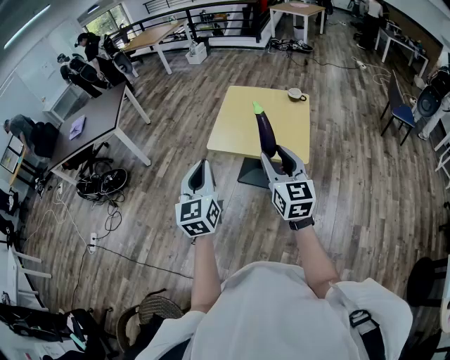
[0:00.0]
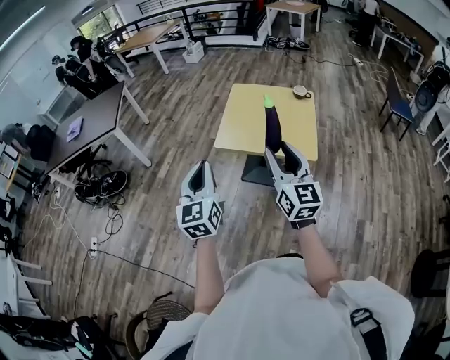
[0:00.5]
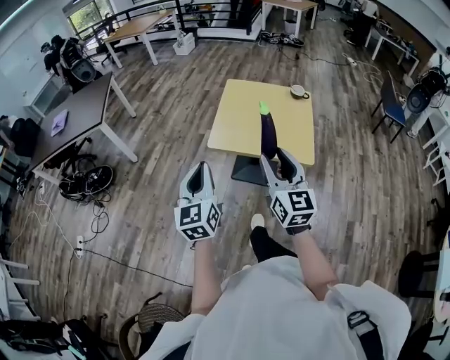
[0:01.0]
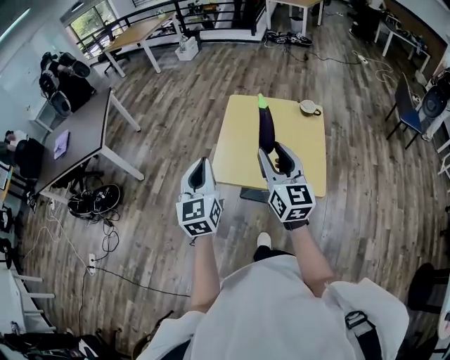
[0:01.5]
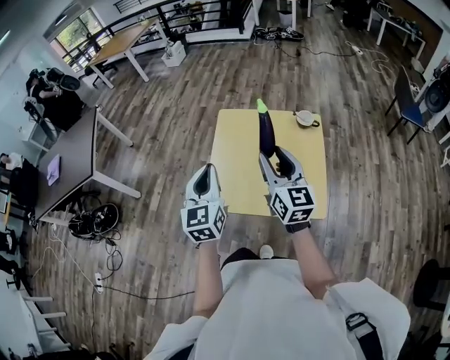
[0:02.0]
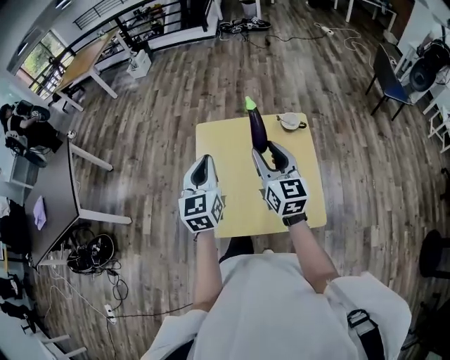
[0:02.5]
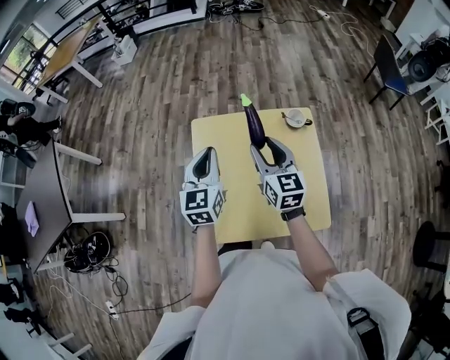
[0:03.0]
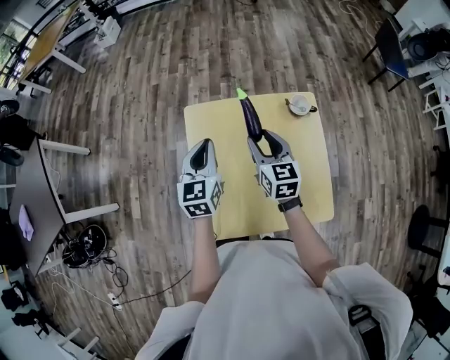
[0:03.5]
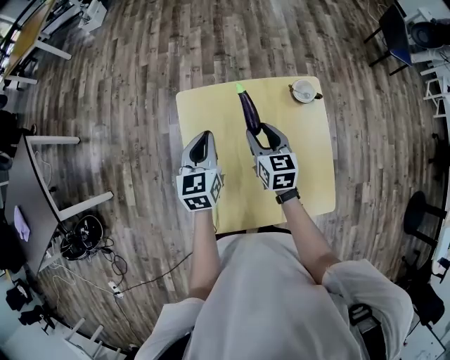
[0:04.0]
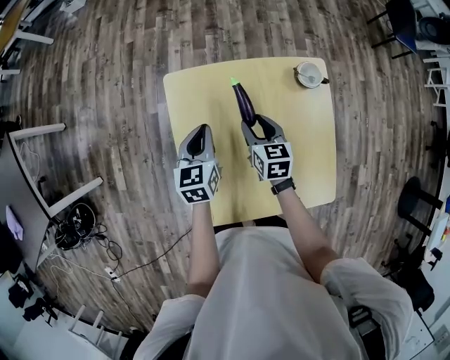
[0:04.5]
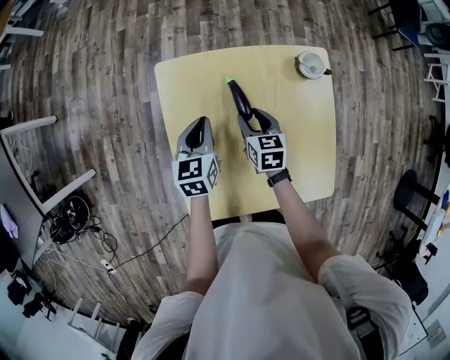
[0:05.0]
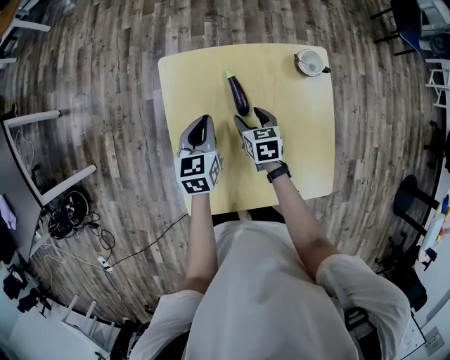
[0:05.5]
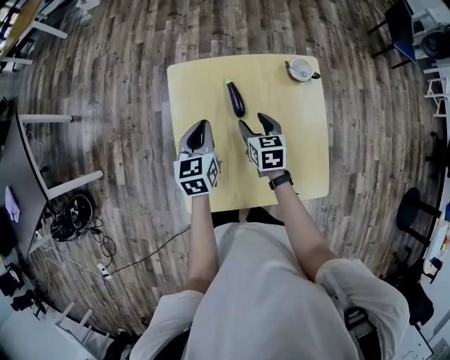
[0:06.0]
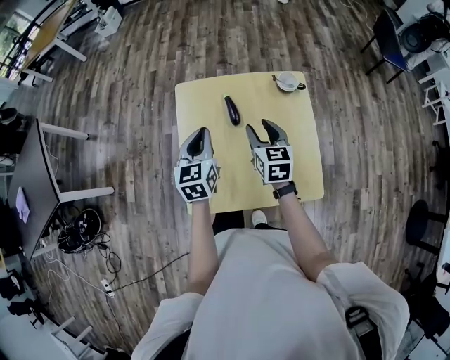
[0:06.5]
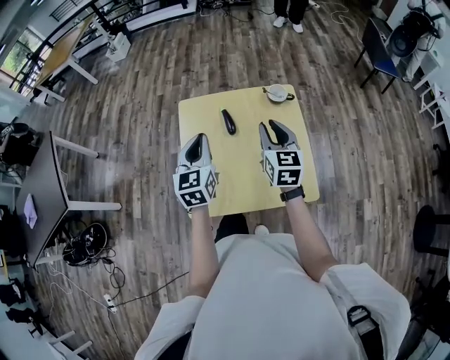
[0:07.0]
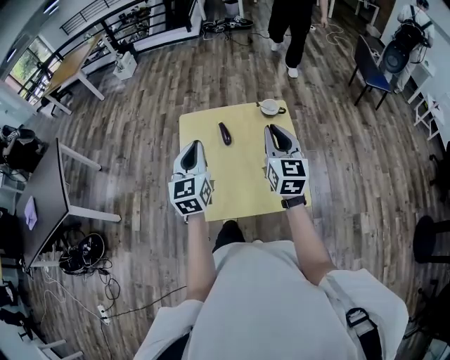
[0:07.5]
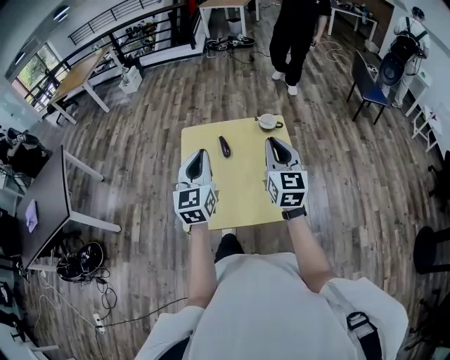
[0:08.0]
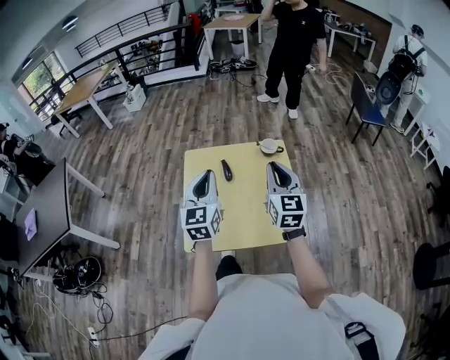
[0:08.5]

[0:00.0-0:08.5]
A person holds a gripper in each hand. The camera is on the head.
0:00.0 to 0:02.0: Both grippers travel together forward, roughly 40 cm.
0:02.0 to 0:04.0: Both grippers move forward and downward, roughly 35 cm. The left gripper changes its angle by about 30 degrees, while the right gripper points its fingers some 30 degrees further downward.
0:04.0 to 0:06.5: The two grippers go approximately 10 cm backward. The right gripper moves roughly 15 cm downward and comes back; the left gripper goes downward and returns, some 10 cm each way.
0:06.5 to 0:08.5: The right gripper travels upward, backward and to the right by approximately 25 cm, rotates roughly 30 degrees, and closes up; the left gripper travels upward and backward by roughly 20 cm, and rotates some 20 degrees.

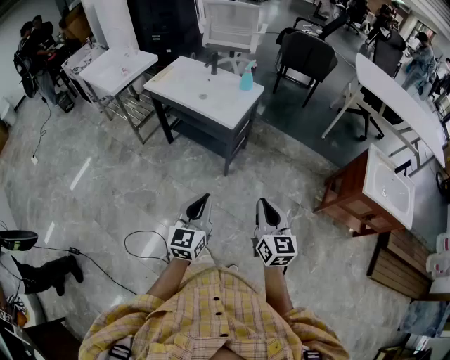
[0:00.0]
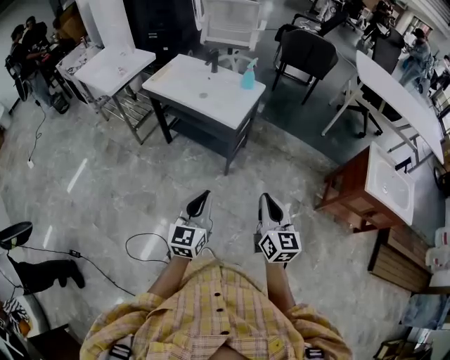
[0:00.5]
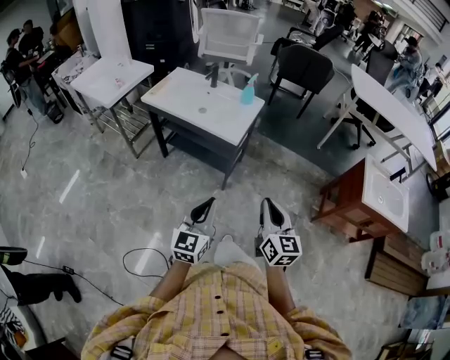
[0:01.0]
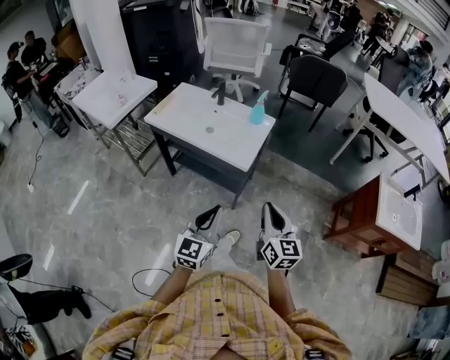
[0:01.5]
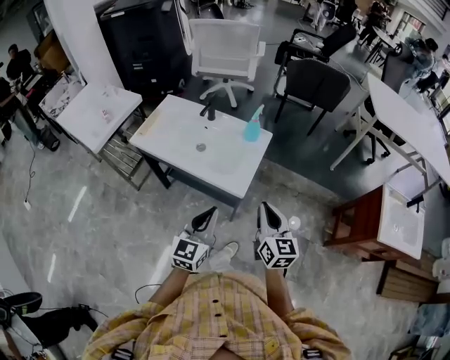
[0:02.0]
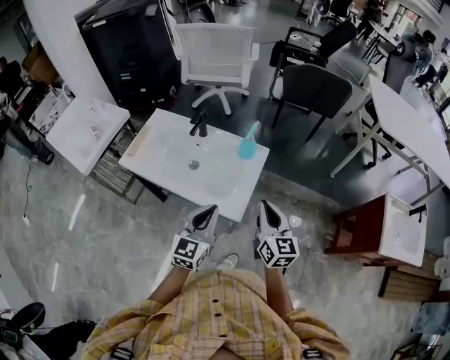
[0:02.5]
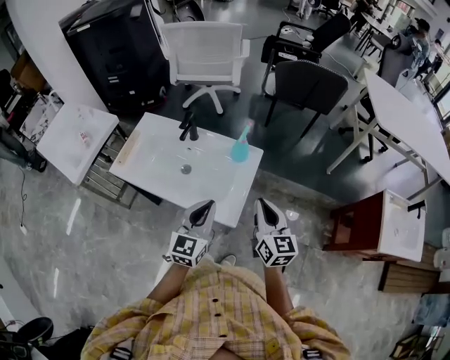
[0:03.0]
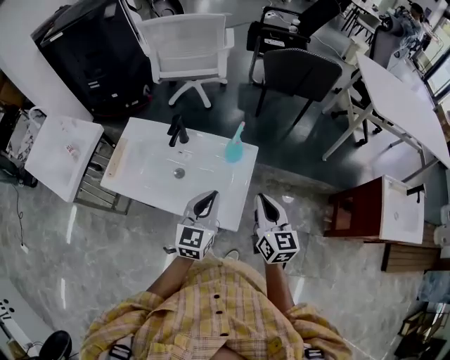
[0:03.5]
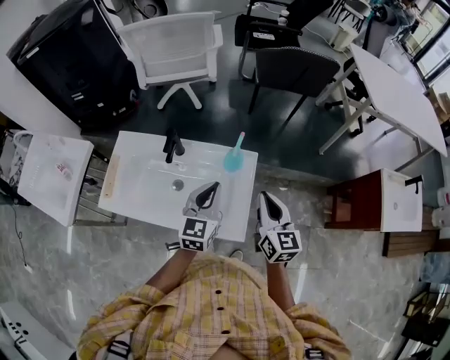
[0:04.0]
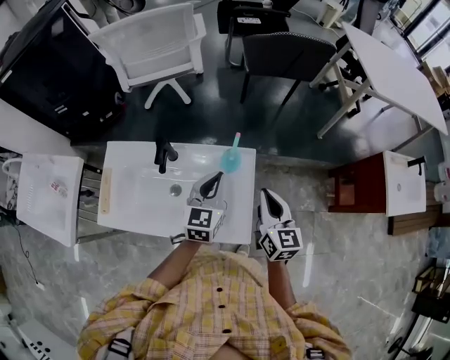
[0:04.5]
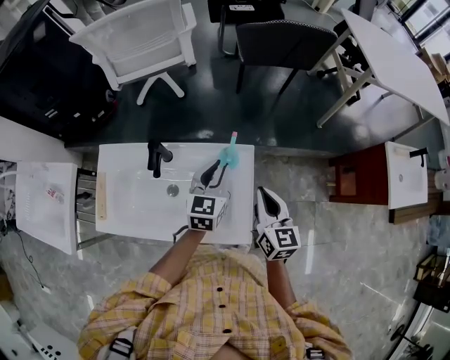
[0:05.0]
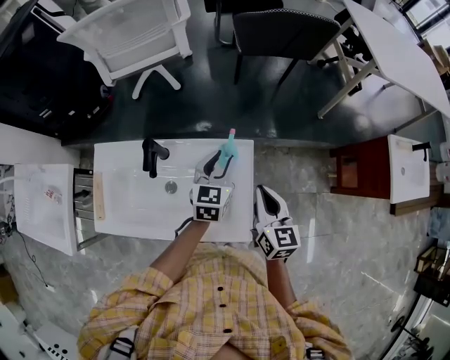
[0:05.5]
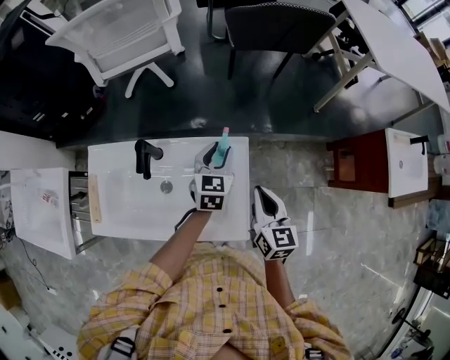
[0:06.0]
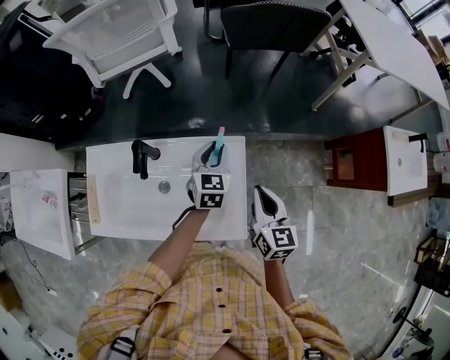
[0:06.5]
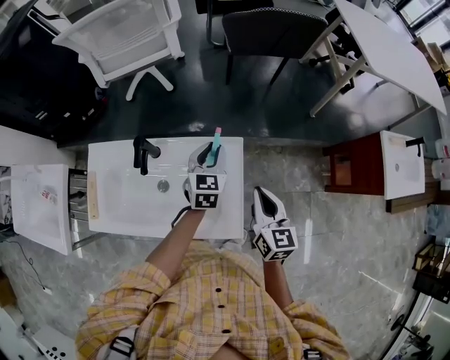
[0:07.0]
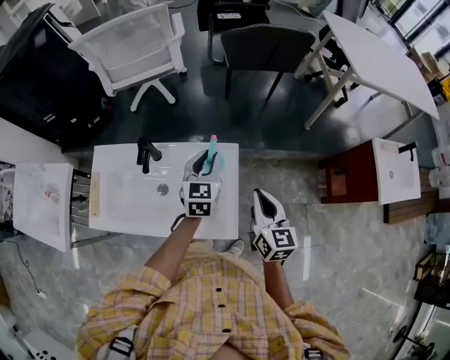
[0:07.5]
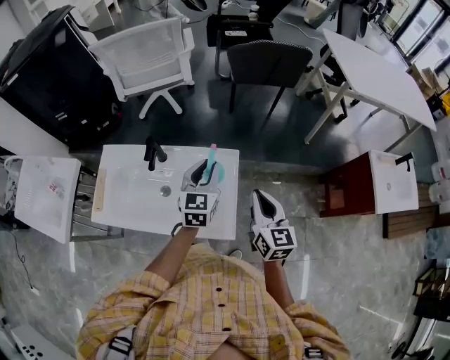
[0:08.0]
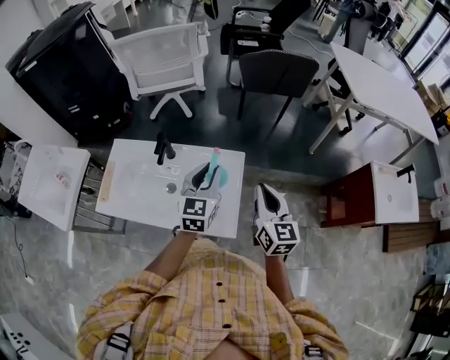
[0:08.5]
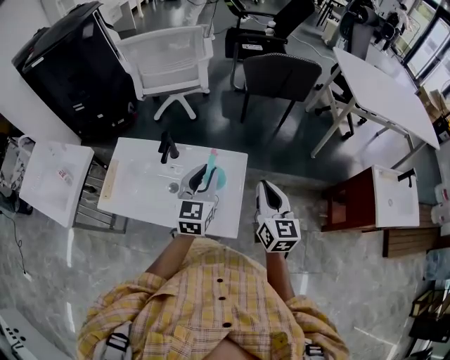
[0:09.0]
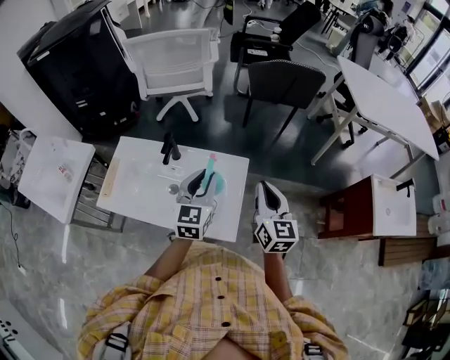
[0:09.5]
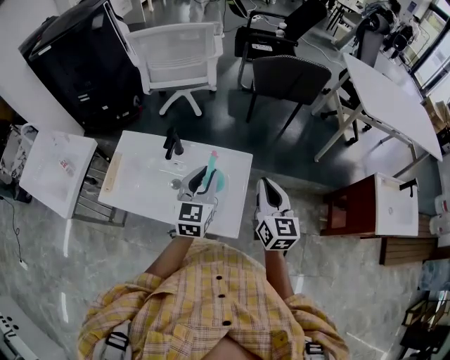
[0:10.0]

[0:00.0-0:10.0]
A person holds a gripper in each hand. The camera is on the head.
0:00.0 to 0:02.0: Both grippers move forward, roughly 35 cm.
0:02.0 to 0:04.0: Both grippers move forward, roughly 30 cm.
0:04.0 to 0:06.0: The right gripper travels downward by approximately 10 cm; the left gripper travels forward and downward by some 20 cm, and opens its fingers.
0:06.0 to 0:08.0: Both grippers move upward and backward, some 10 cm.
0:08.0 to 0:10.0: The right gripper shifts by roughly 5 cm. Meanwhile the left gripper heads backward, covering some 5 cm.

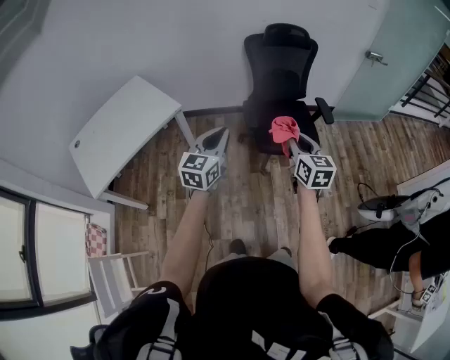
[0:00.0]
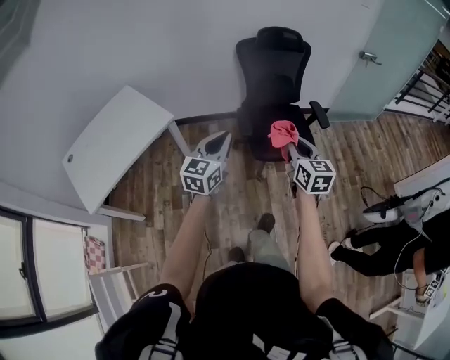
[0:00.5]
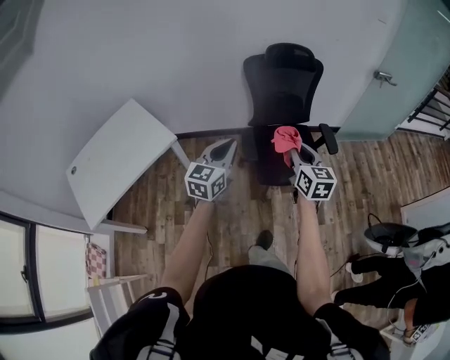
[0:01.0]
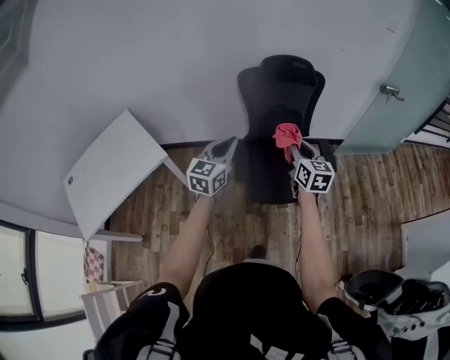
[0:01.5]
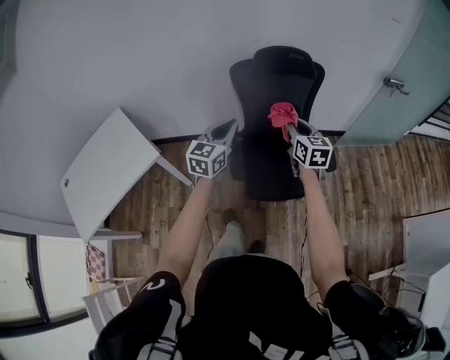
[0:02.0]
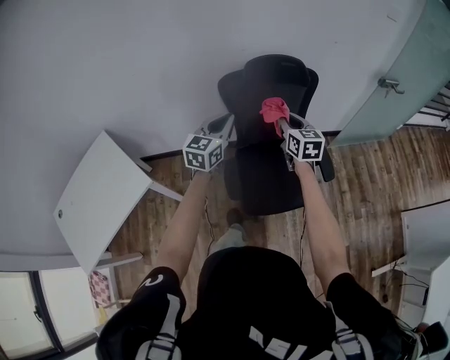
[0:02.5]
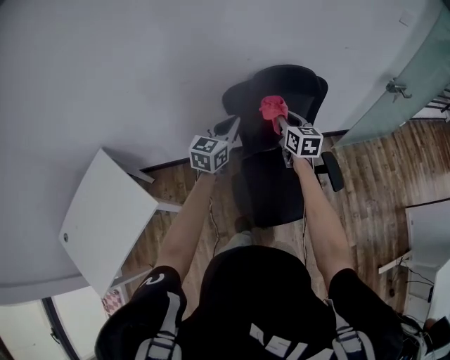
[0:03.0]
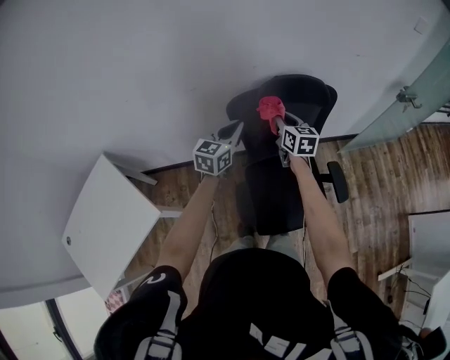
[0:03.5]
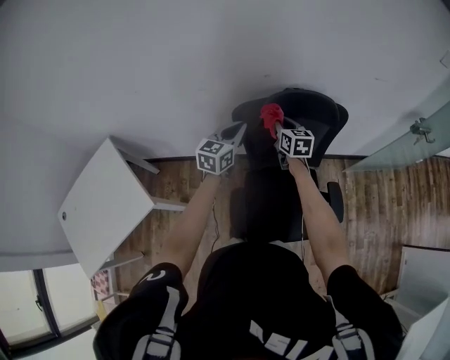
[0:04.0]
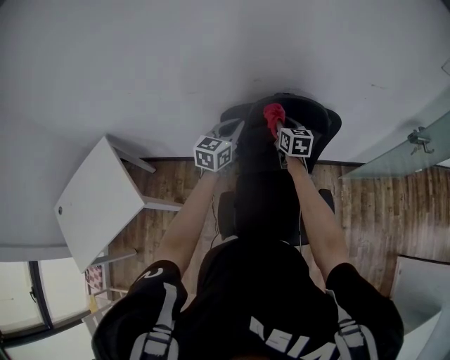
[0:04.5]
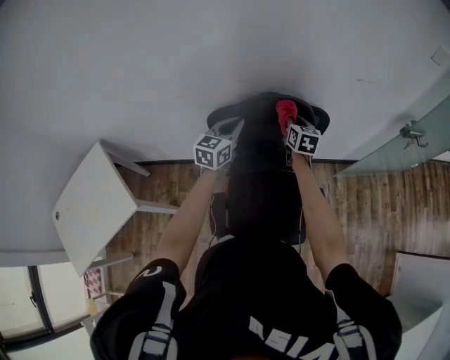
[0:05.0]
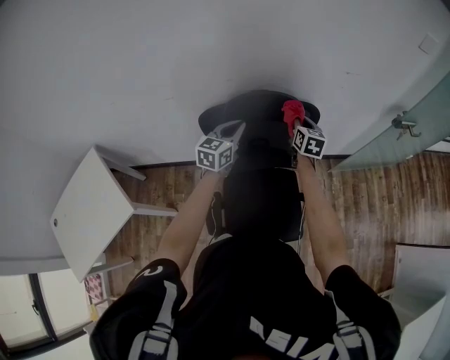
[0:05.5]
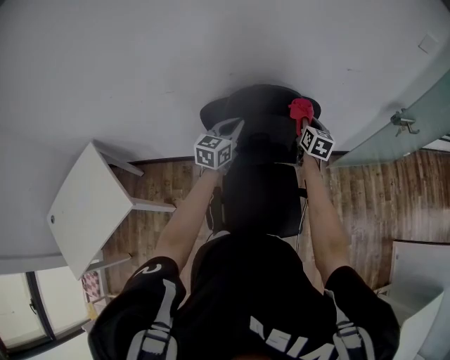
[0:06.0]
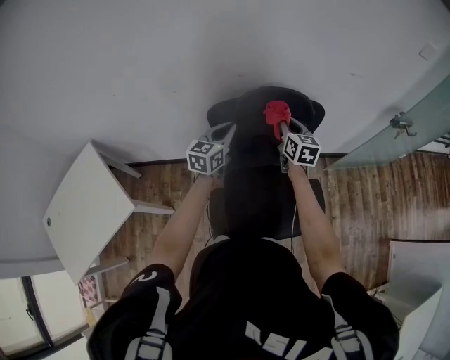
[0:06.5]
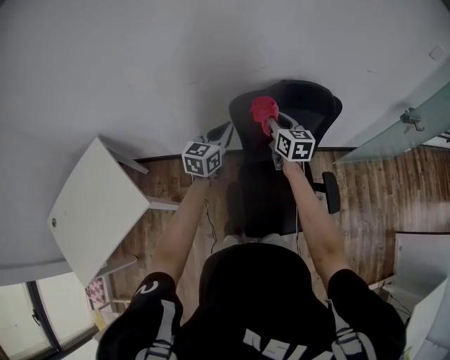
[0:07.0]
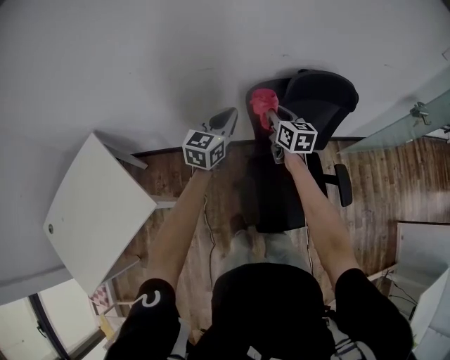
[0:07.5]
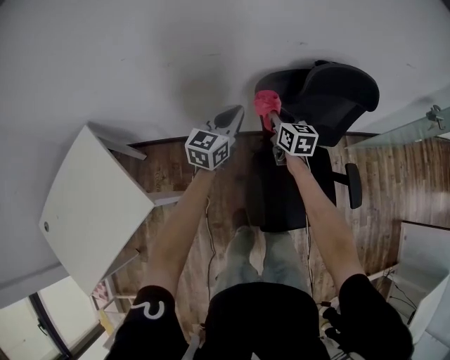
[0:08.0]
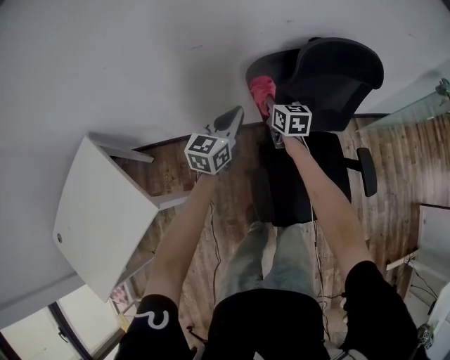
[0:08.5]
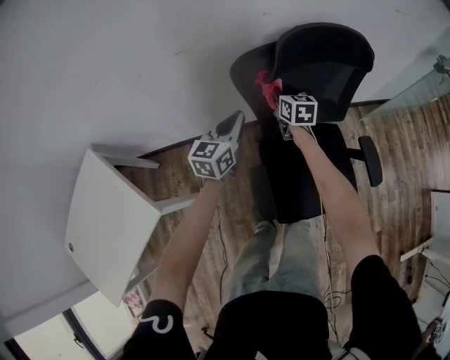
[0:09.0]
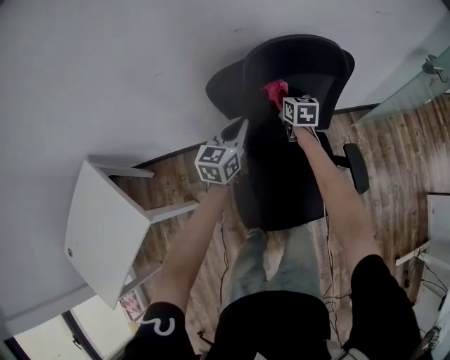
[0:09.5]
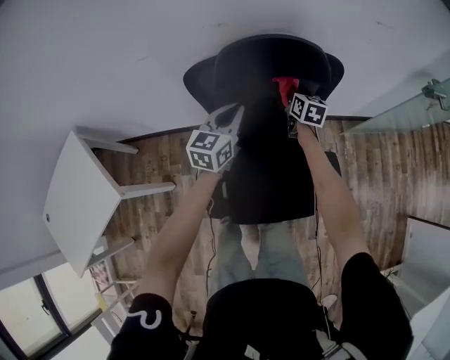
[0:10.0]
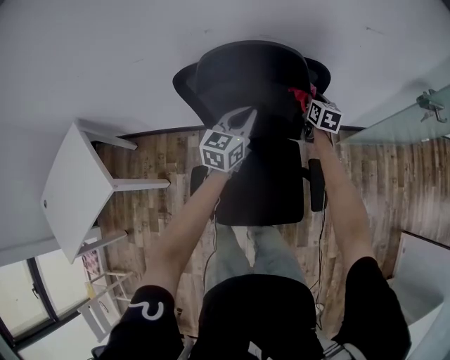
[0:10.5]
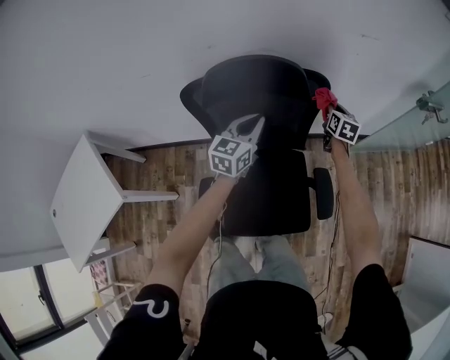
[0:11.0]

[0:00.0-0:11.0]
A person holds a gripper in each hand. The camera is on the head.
0:00.0 to 0:02.0: Both grippers are carried forward, approximately 40 cm.
0:02.0 to 0:03.5: Both grippers move forward, about 30 cm.
0:03.5 to 0:05.5: Both grippers move to the right and forward, some 20 cm.
0:05.5 to 0:07.5: The two grippers go about 30 cm to the left.
0:07.5 to 0:09.0: The left gripper heads downward and to the right, covering some 15 cm; the right gripper goes roughly 20 cm downward and forward.
0:09.0 to 0:11.0: The grippers both shift to the right by roughly 35 cm.
